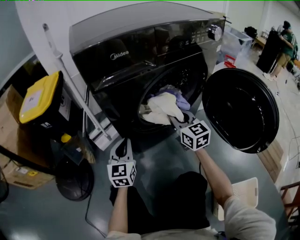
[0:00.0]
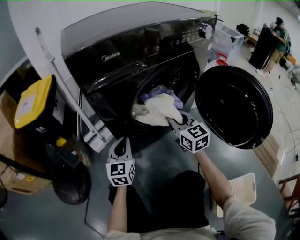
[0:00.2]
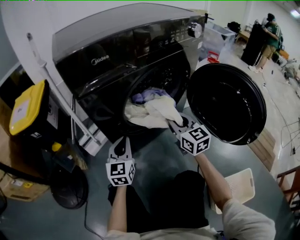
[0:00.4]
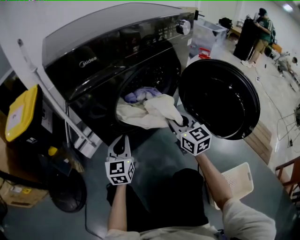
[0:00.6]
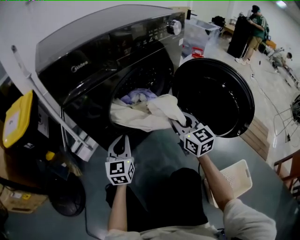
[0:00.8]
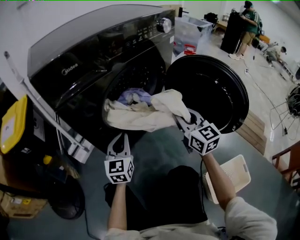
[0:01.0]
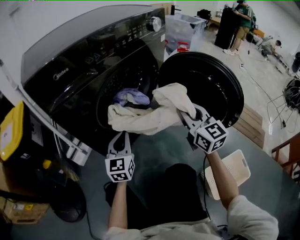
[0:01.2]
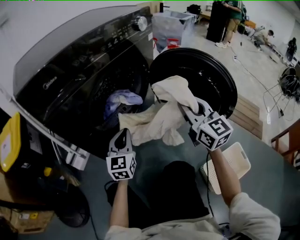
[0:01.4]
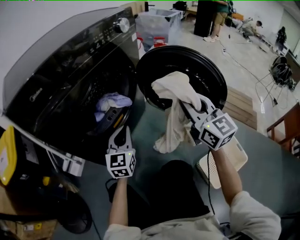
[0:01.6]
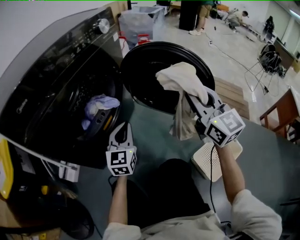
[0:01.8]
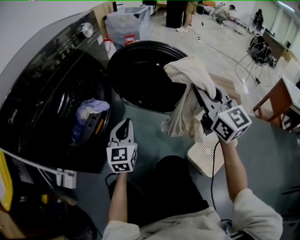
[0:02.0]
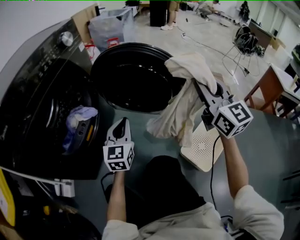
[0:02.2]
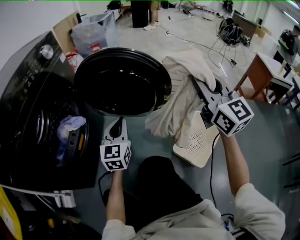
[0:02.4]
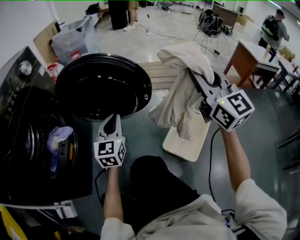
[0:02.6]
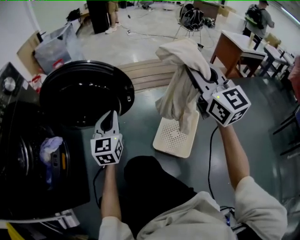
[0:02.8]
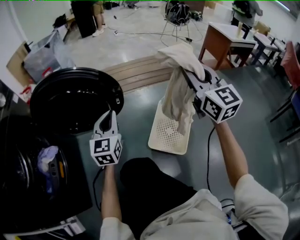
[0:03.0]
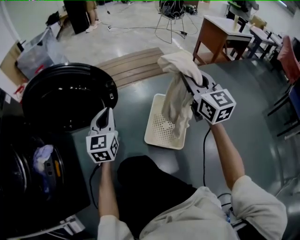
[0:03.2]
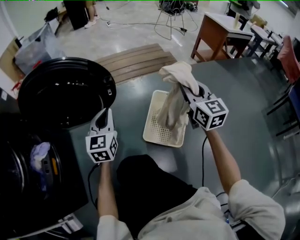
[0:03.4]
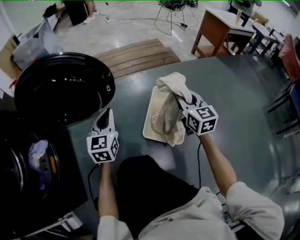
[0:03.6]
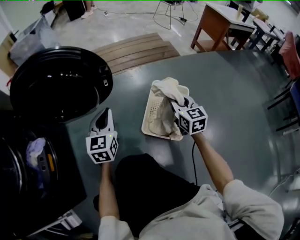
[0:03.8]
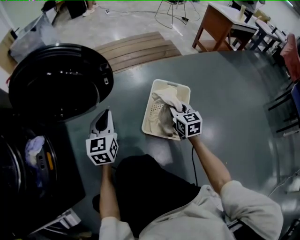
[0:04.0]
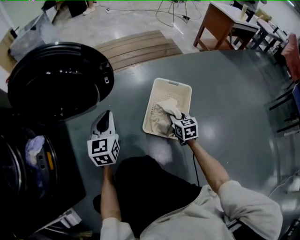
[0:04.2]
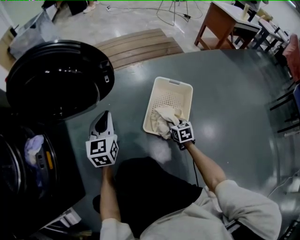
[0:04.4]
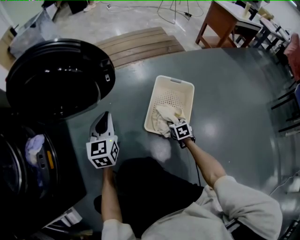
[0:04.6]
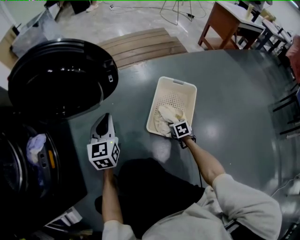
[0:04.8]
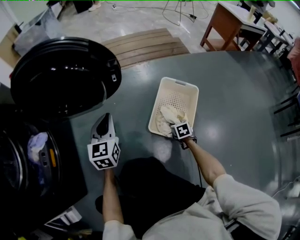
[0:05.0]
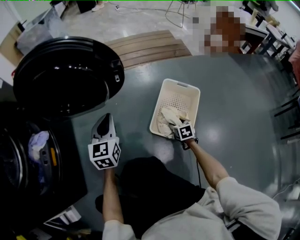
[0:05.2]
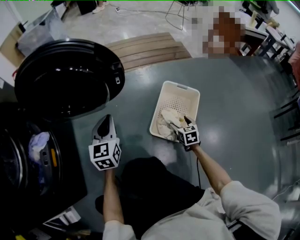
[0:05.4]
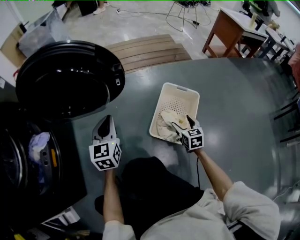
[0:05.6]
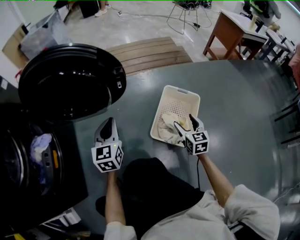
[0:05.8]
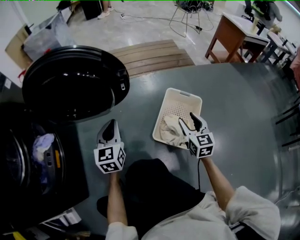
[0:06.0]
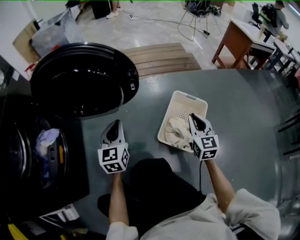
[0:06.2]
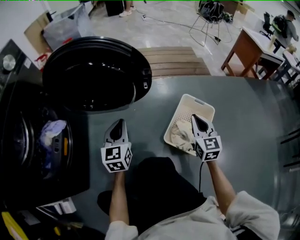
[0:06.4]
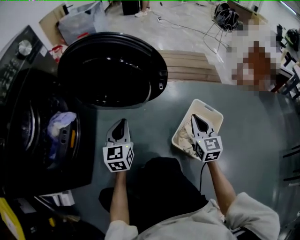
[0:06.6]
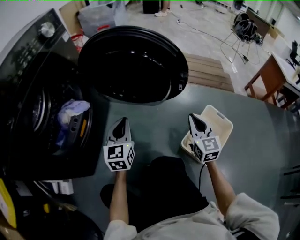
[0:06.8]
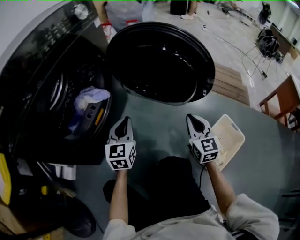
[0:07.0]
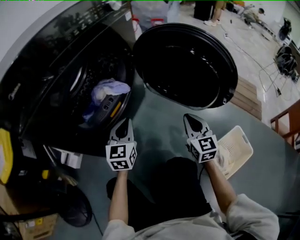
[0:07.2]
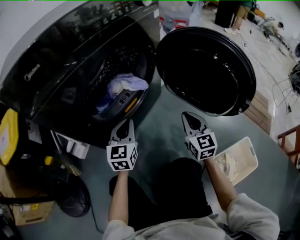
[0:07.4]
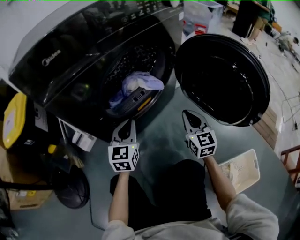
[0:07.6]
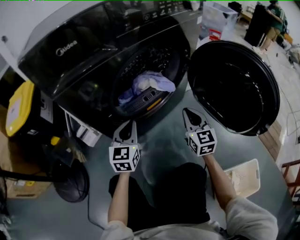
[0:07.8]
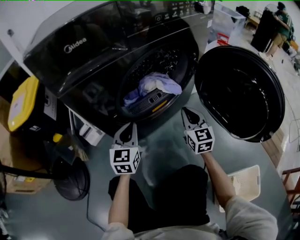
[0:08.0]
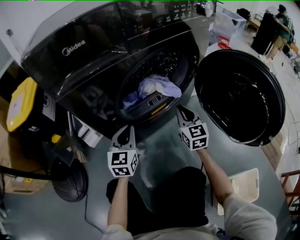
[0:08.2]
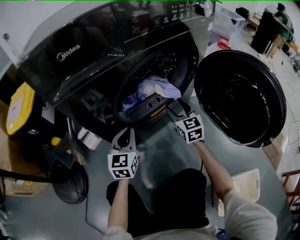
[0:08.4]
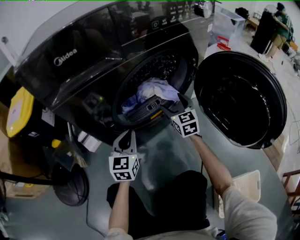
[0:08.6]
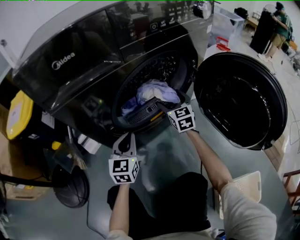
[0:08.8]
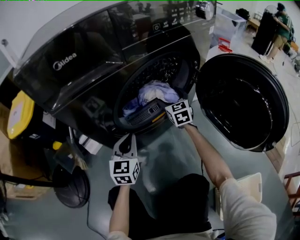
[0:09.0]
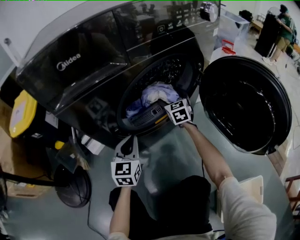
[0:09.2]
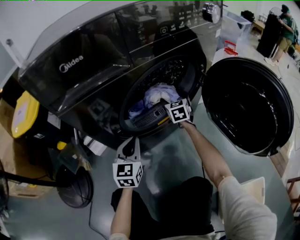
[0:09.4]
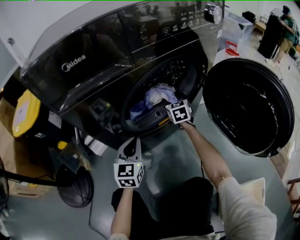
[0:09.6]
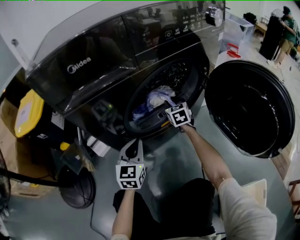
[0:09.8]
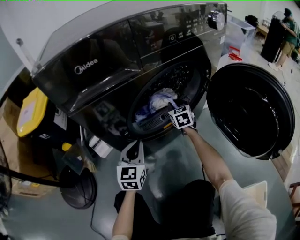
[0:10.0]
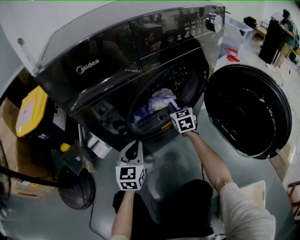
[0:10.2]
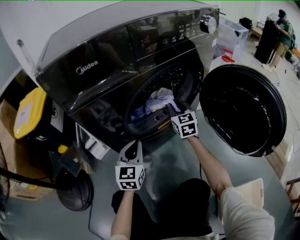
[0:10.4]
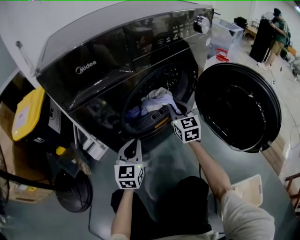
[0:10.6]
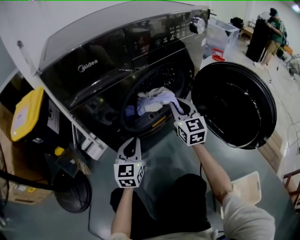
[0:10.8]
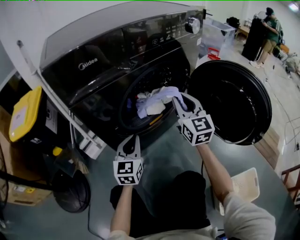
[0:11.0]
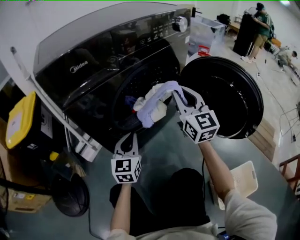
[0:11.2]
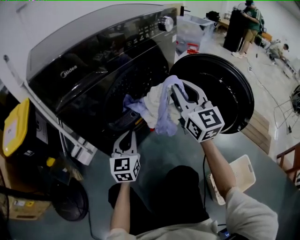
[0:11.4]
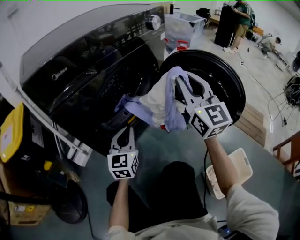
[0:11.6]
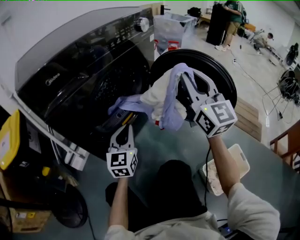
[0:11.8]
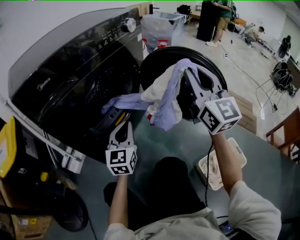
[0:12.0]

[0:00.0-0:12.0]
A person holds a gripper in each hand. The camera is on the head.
0:00.0 to 0:01.6: The left gripper shifts by approximately 25 cm, and rotates some 30 degrees. The right gripper changes place by about 30 cm, and rotates approximately 30 degrees.
0:01.6 to 0:03.0: The left gripper moves approximately 35 cm, and turns by roughly 50 degrees. Meanwhile the right gripper changes place by about 40 cm, and changes its angle by roughly 50 degrees.
0:03.0 to 0:04.4: The left gripper moves downward, approximately 10 cm; the right gripper travels downward by approximately 50 cm, and tips its fingers downward by roughly 50 degrees.
0:04.4 to 0:06.0: The right gripper is displaced upward by roughly 20 cm, swivels about 30 degrees, and opens its fingers.
0:06.0 to 0:07.6: Both grippers are carried approximately 40 cm. The right gripper swivels roughly 60 degrees, and closes its fingers; the left gripper rotates roughly 50 degrees.
0:07.6 to 0:09.0: The right gripper moves forward and to the left, about 25 cm, and opens. Meanwhile the left gripper is displaced to the left by about 5 cm.
0:09.0 to 0:10.4: The right gripper ends up approximately 5 cm from where it was, and closes its fingers.
0:10.4 to 0:12.0: The right gripper goes some 50 cm upward, backward and to the right, and angles its fingers upward, by approximately 30 degrees. The left gripper travels to the right and upward by approximately 20 cm, and turns by roughly 20 degrees.

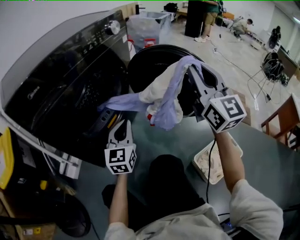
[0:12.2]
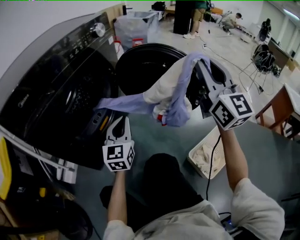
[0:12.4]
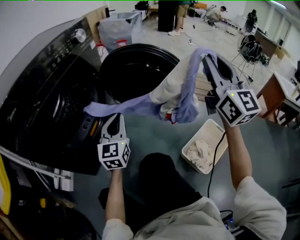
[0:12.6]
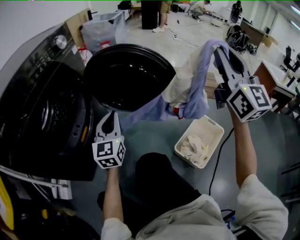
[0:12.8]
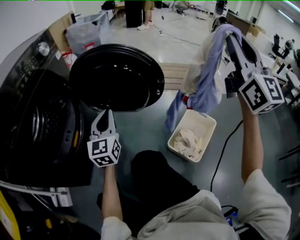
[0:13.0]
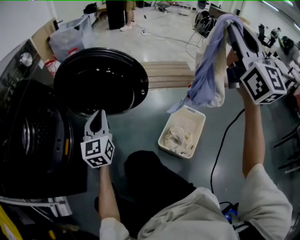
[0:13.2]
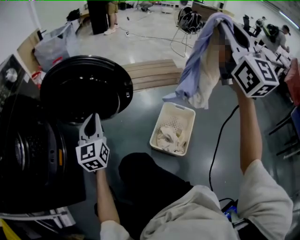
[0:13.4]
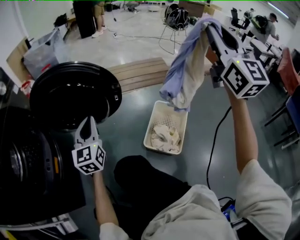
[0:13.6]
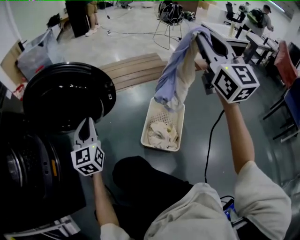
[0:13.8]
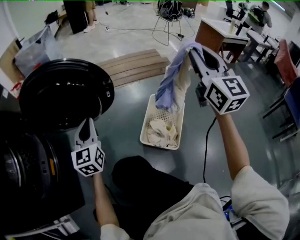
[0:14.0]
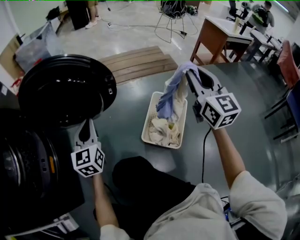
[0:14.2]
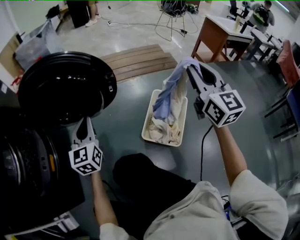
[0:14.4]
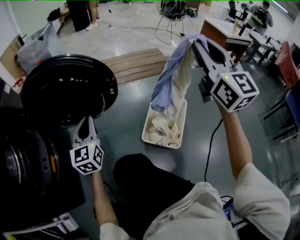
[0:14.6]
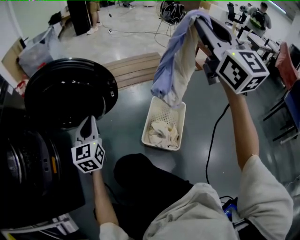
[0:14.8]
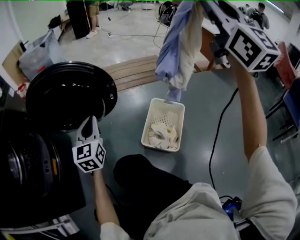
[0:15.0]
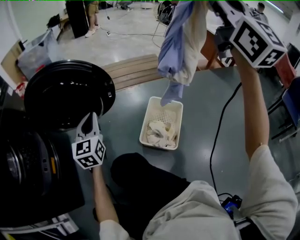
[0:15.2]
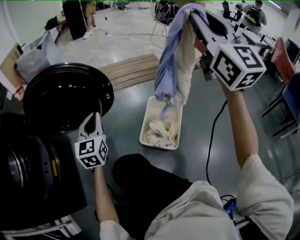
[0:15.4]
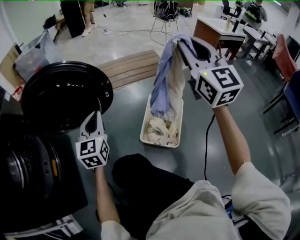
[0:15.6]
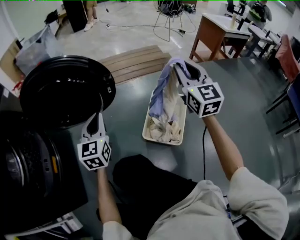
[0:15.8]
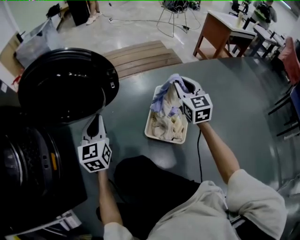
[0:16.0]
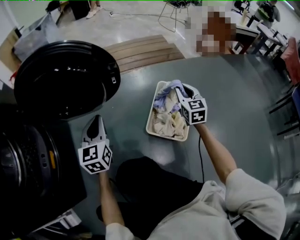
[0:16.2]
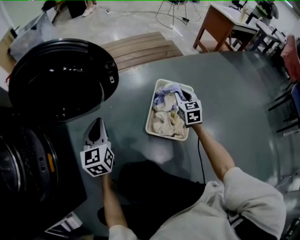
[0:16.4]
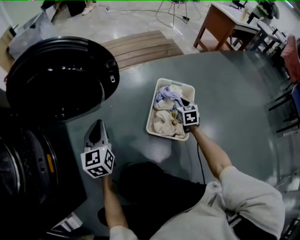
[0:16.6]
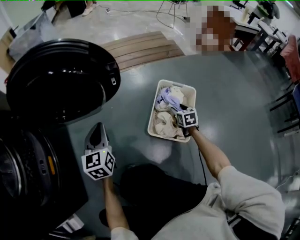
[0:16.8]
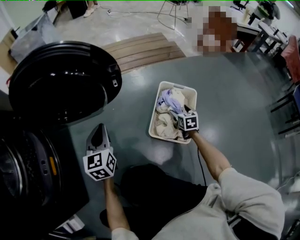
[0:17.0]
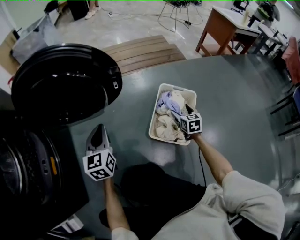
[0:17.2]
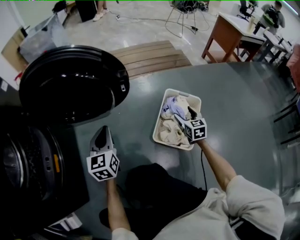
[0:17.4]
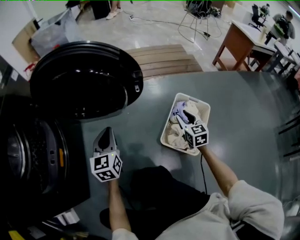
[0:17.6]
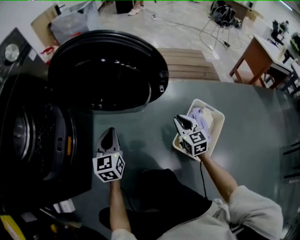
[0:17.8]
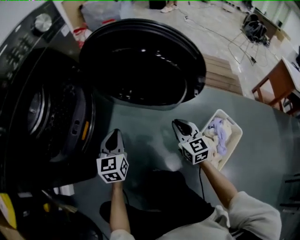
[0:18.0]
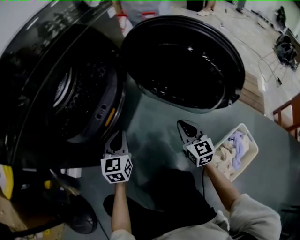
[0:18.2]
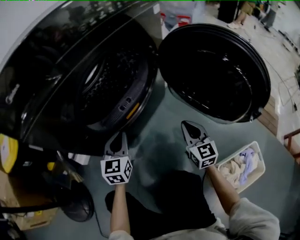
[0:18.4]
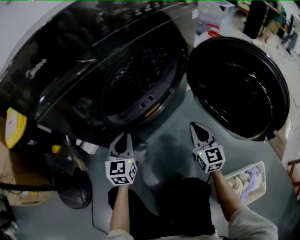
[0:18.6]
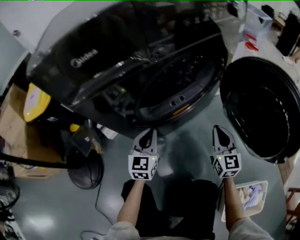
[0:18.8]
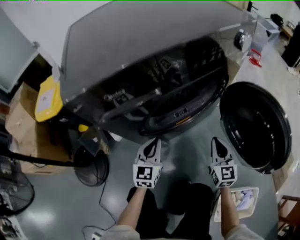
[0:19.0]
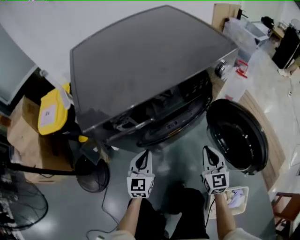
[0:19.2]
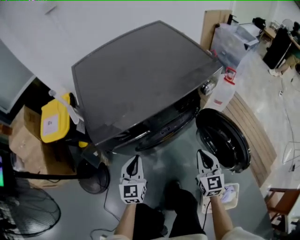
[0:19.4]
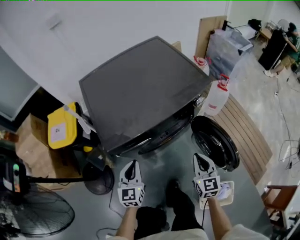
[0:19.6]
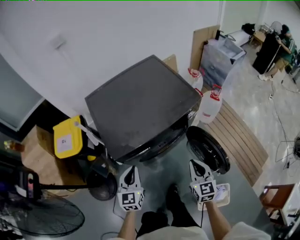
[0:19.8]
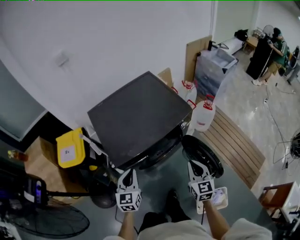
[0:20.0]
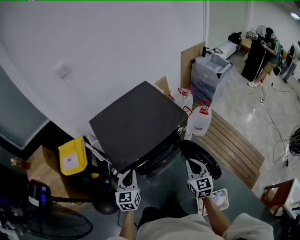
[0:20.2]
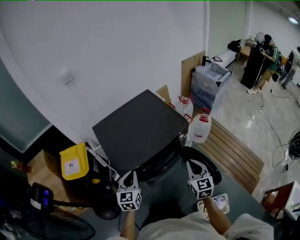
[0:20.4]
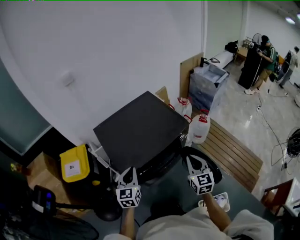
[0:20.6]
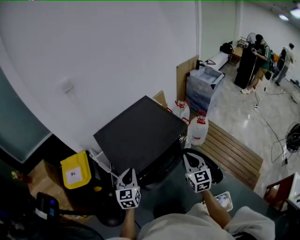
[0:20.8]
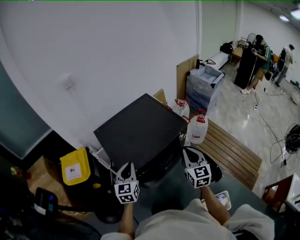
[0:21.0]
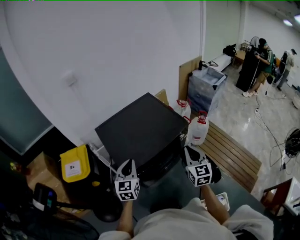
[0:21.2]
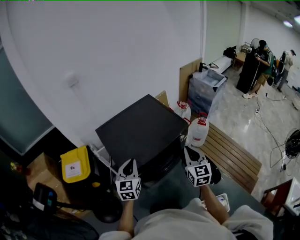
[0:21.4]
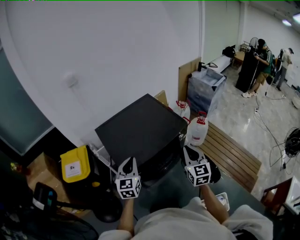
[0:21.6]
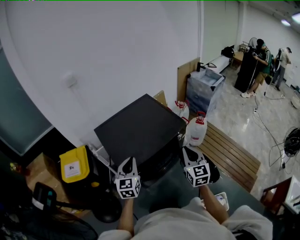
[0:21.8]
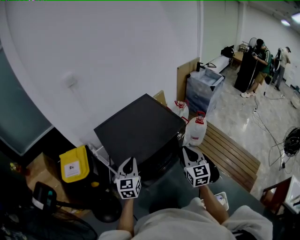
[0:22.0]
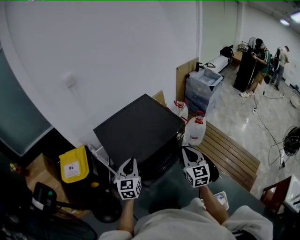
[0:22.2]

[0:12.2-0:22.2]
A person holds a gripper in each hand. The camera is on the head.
0:12.2 to 0:13.6: The left gripper moves approximately 25 cm, and turns by some 30 degrees; the right gripper ends up approximately 40 cm from where it was, and changes its angle by approximately 50 degrees.
0:13.6 to 0:15.0: The right gripper goes downward and returns, about 20 cm each way.
0:15.0 to 0:16.4: The right gripper is displaced downward by some 60 cm, and angles its fingers downward, by roughly 50 degrees. The left gripper heads downward, covering roughly 10 cm.
0:16.4 to 0:18.0: The left gripper ends up some 20 cm from where it was, and turns by some 20 degrees. The right gripper goes downward and returns, about 15 cm each way, changes its angle by roughly 40 degrees, and opens, then closes again.
0:18.0 to 0:19.4: Both grippers move upward, about 30 cm. The left gripper swivels about 40 degrees; the right gripper turns by about 30 degrees.
0:19.4 to 0:20.8: Both grippers move upward, roughly 35 cm.
0:20.8 to 0:22.2: There are only small adjustments of the grippers.

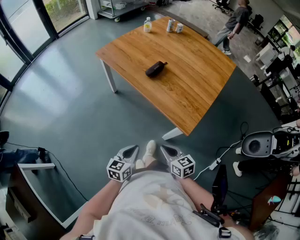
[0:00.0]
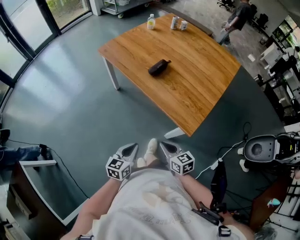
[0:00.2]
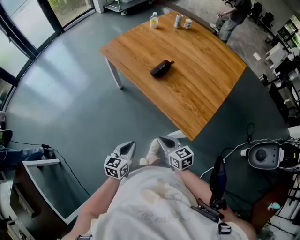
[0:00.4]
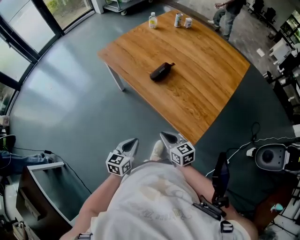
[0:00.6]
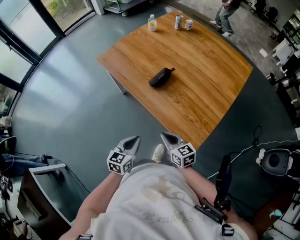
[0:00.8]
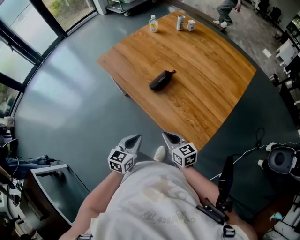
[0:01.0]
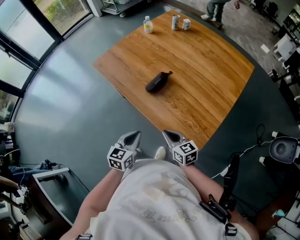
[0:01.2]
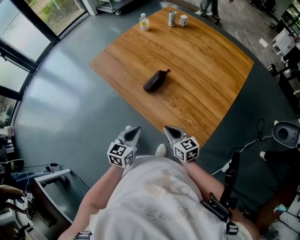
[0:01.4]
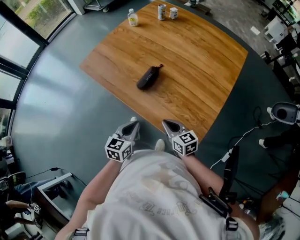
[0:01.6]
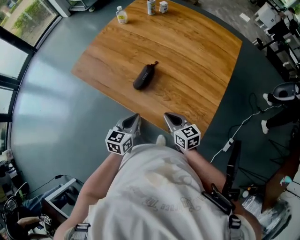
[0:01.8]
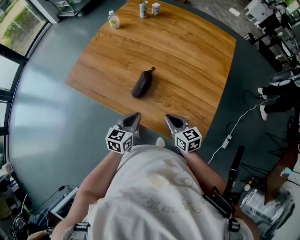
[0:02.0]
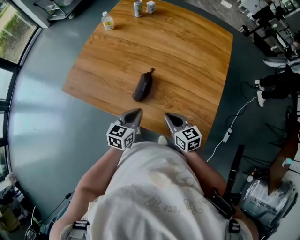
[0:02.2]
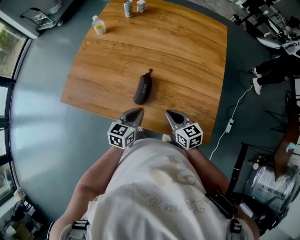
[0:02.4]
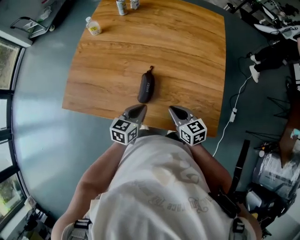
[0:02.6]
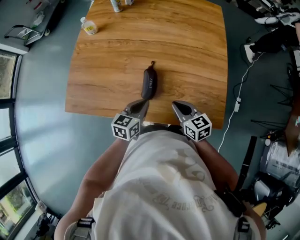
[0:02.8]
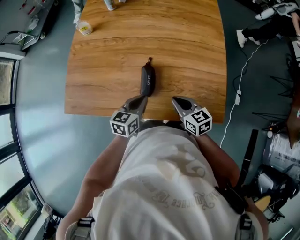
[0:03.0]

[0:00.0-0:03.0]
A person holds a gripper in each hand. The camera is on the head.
0:00.0 to 0:01.6: Both grippers travel together forward, approximately 30 cm.
0:01.6 to 0:03.0: The right gripper ends up approximately 10 cm from where it was, and rotates roughly 30 degrees. Meanwhile the left gripper ends up roughly 20 cm from where it was, and swivels approximately 30 degrees.
